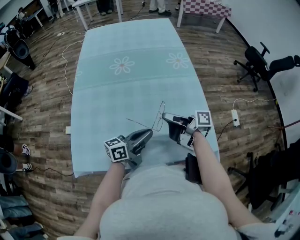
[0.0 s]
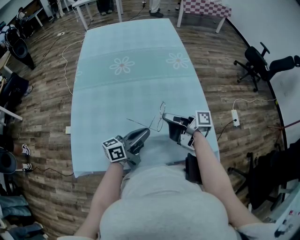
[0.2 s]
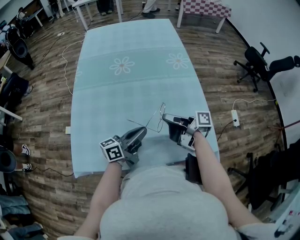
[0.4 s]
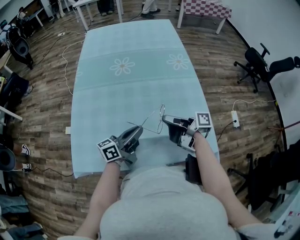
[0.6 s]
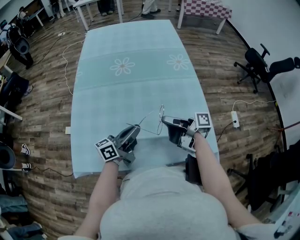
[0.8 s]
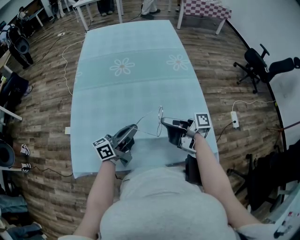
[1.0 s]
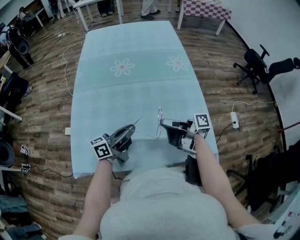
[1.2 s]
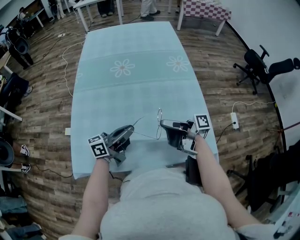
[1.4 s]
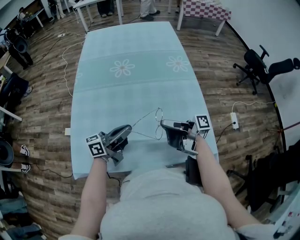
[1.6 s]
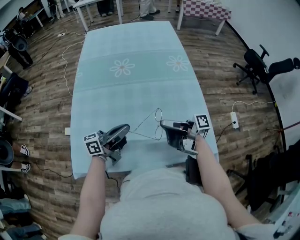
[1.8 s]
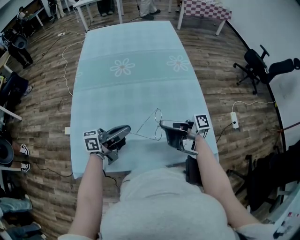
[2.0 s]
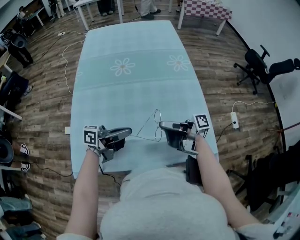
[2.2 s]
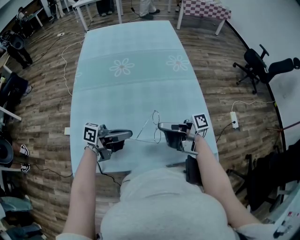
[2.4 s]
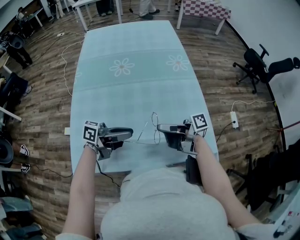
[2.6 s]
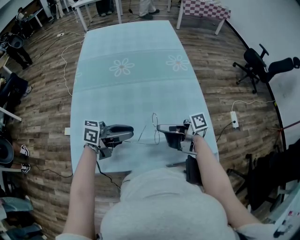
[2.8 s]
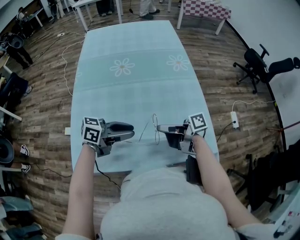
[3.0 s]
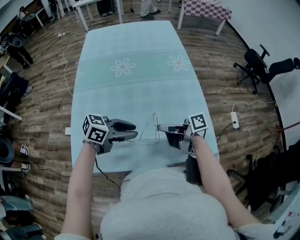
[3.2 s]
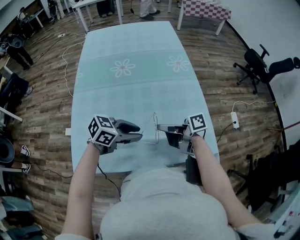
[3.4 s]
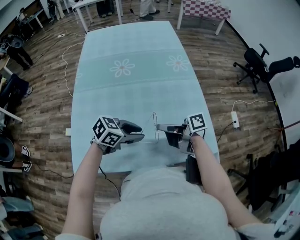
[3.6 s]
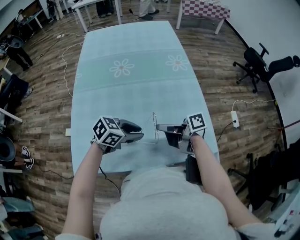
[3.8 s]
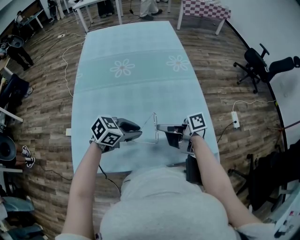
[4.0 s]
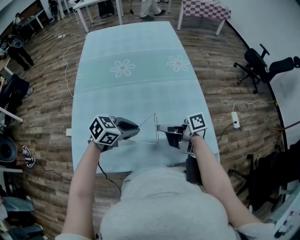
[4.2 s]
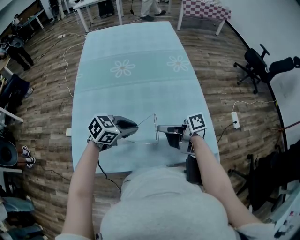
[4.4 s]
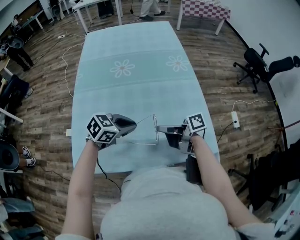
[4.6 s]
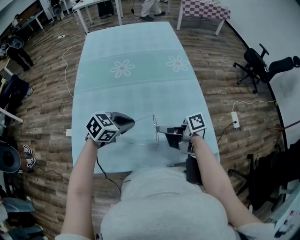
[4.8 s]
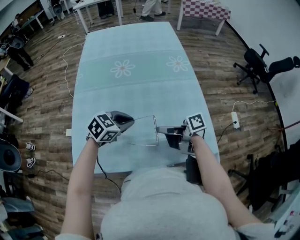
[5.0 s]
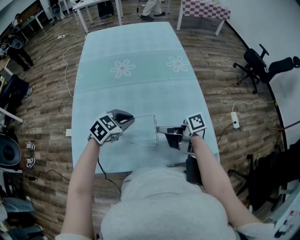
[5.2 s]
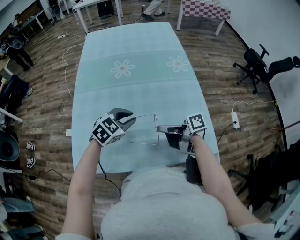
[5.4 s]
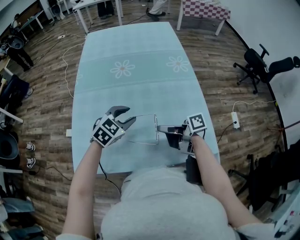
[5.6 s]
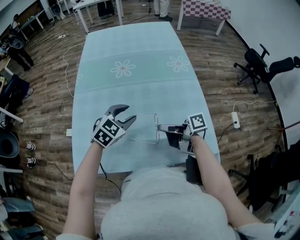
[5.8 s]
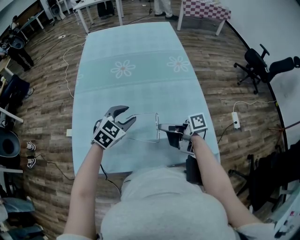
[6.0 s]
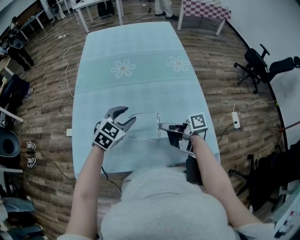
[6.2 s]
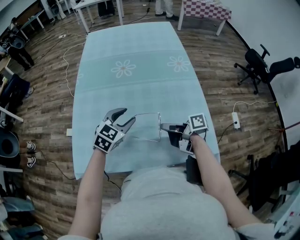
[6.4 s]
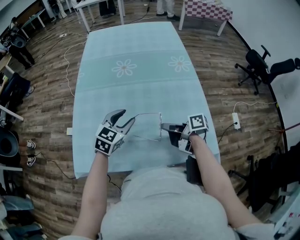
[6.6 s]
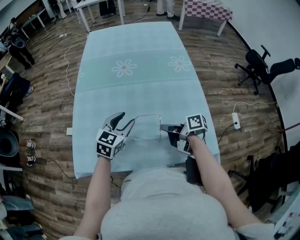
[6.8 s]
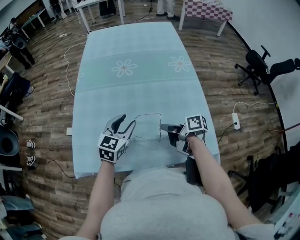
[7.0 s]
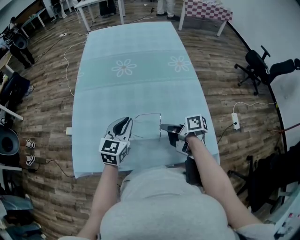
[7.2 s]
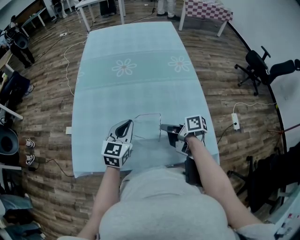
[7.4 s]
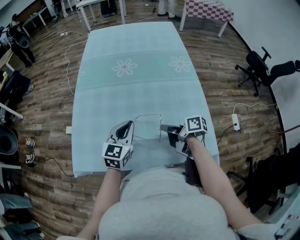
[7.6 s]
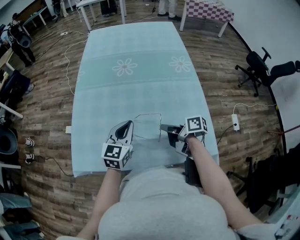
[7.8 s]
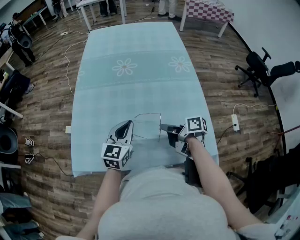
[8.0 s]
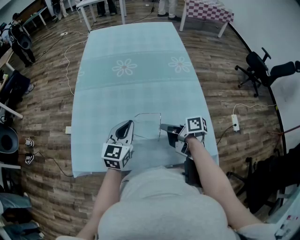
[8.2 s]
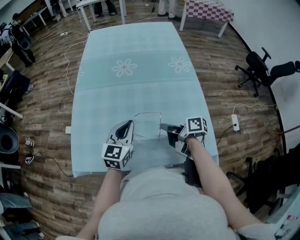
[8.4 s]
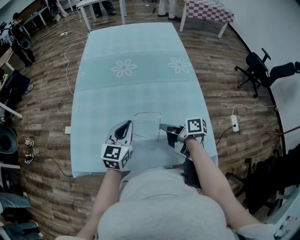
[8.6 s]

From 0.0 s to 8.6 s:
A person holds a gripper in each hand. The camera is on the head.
From 0.0 s to 1.4 s: The left gripper ends up about 10 cm from where it was.
From 1.4 s to 2.8 s: The left gripper swivels approximately 30 degrees, and opens up.
From 2.8 s to 4.4 s: The left gripper angles its fingers downward, by about 40 degrees, and closes its fingers.
From 4.4 s to 5.8 s: The left gripper moves some 5 cm, changes its angle by roughly 30 degrees, and opens.
From 5.8 s to 7.2 s: The left gripper changes its angle by some 40 degrees, and closes.

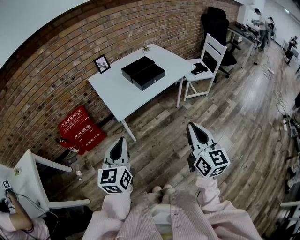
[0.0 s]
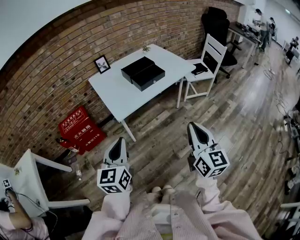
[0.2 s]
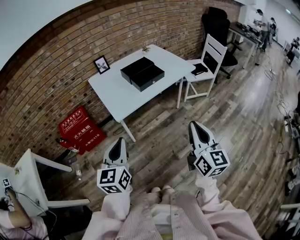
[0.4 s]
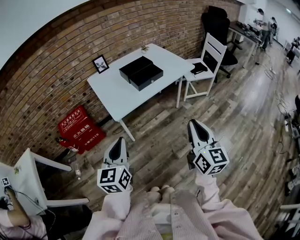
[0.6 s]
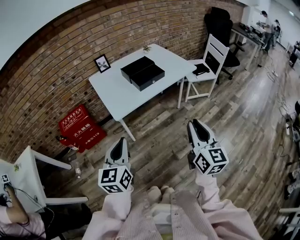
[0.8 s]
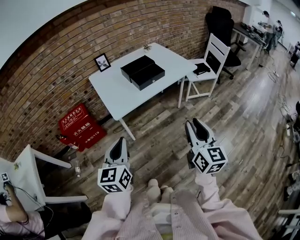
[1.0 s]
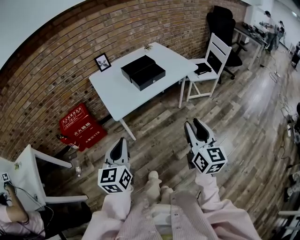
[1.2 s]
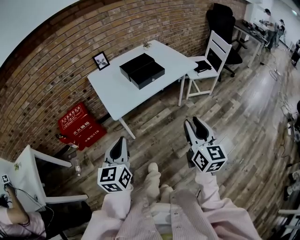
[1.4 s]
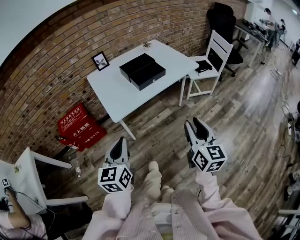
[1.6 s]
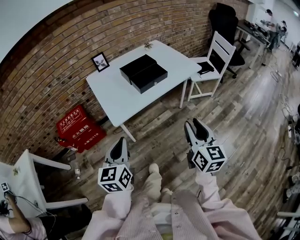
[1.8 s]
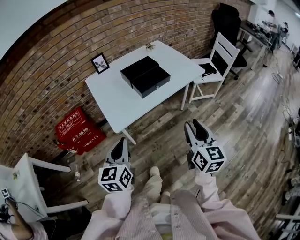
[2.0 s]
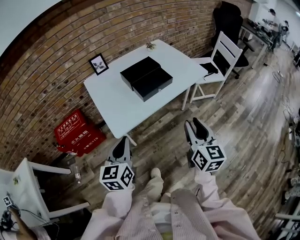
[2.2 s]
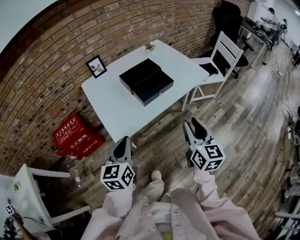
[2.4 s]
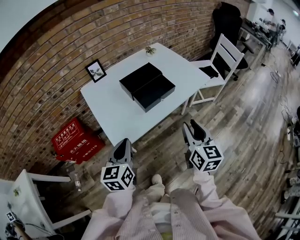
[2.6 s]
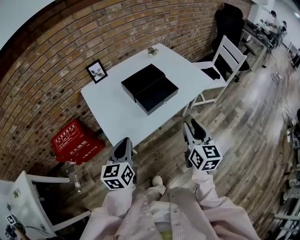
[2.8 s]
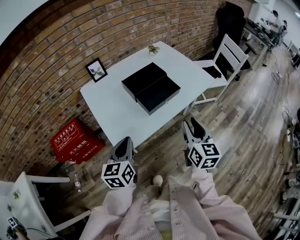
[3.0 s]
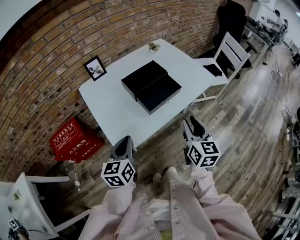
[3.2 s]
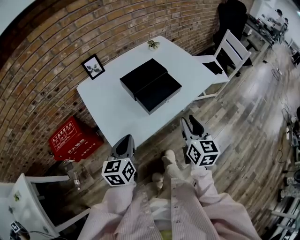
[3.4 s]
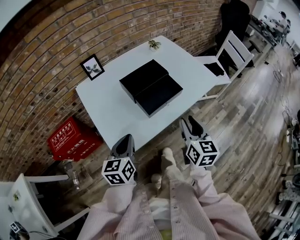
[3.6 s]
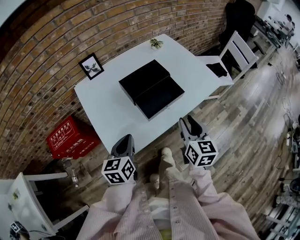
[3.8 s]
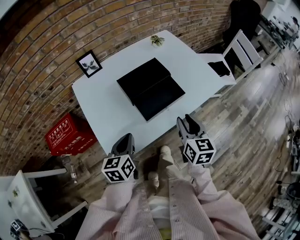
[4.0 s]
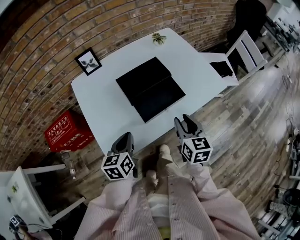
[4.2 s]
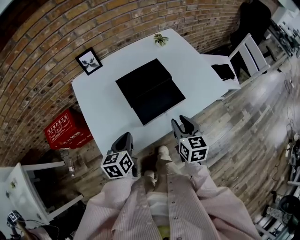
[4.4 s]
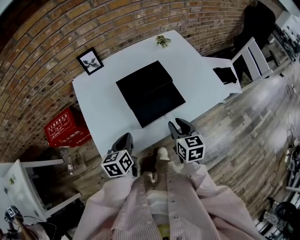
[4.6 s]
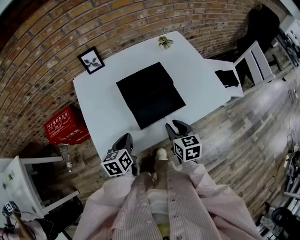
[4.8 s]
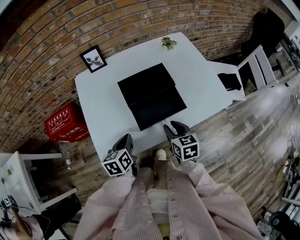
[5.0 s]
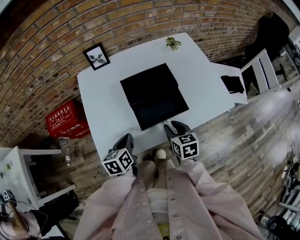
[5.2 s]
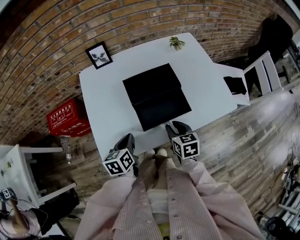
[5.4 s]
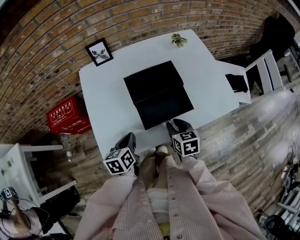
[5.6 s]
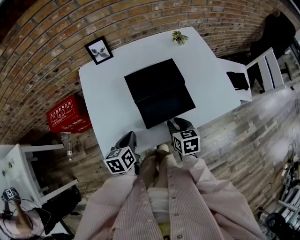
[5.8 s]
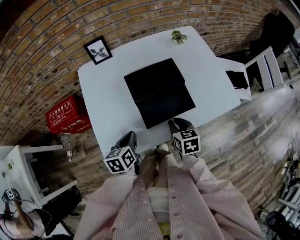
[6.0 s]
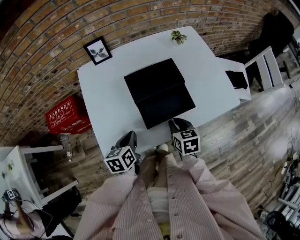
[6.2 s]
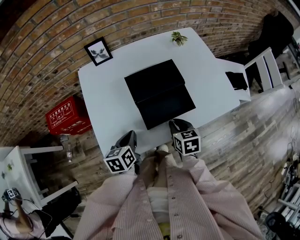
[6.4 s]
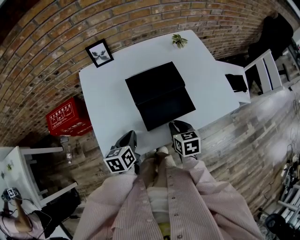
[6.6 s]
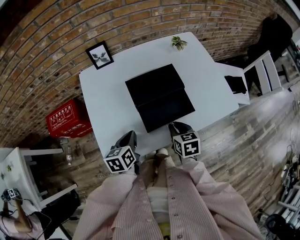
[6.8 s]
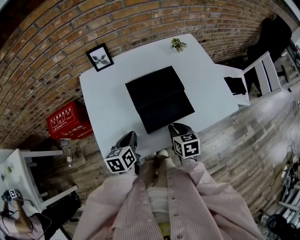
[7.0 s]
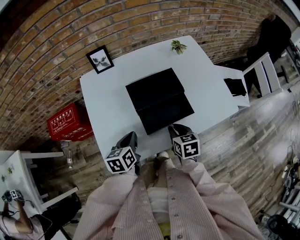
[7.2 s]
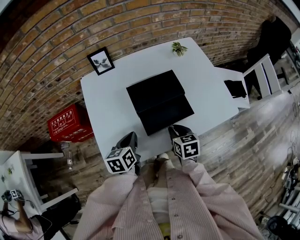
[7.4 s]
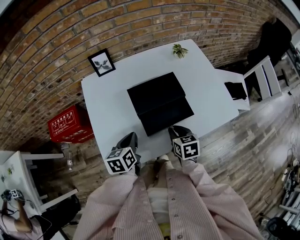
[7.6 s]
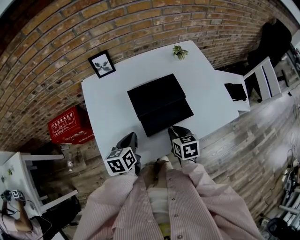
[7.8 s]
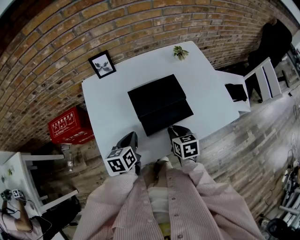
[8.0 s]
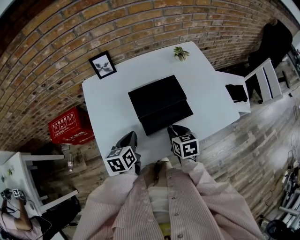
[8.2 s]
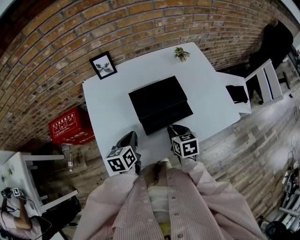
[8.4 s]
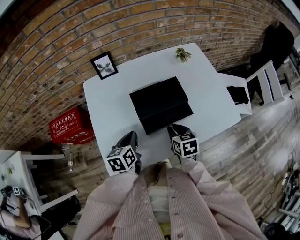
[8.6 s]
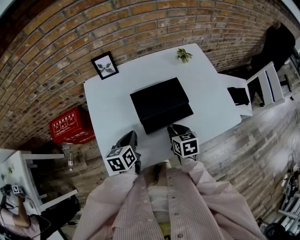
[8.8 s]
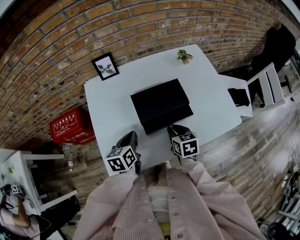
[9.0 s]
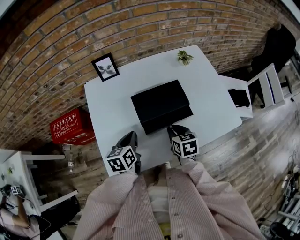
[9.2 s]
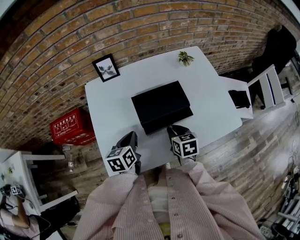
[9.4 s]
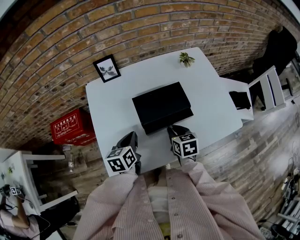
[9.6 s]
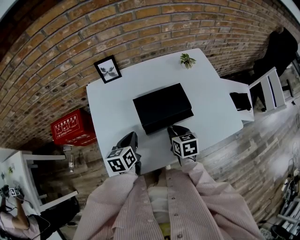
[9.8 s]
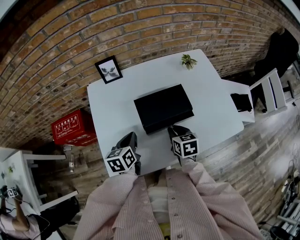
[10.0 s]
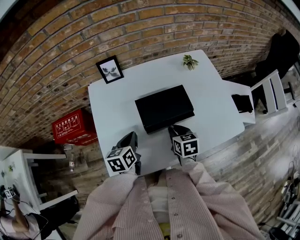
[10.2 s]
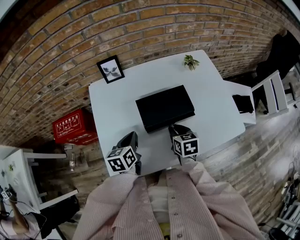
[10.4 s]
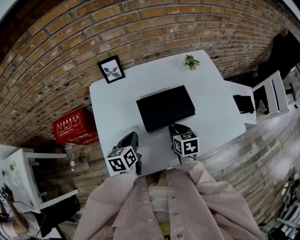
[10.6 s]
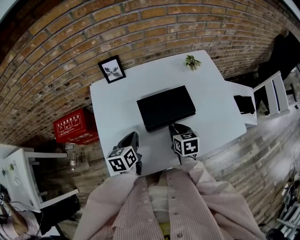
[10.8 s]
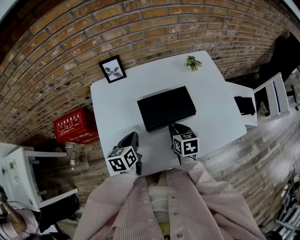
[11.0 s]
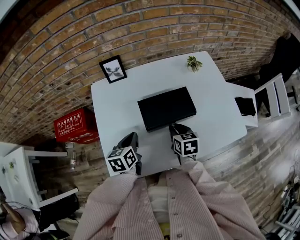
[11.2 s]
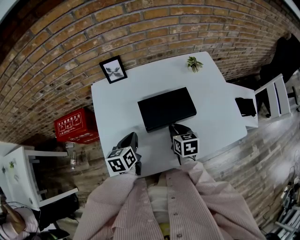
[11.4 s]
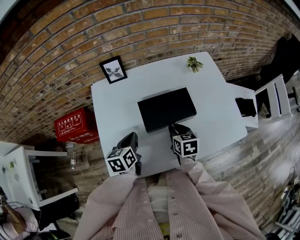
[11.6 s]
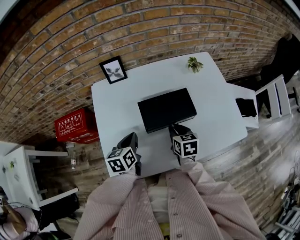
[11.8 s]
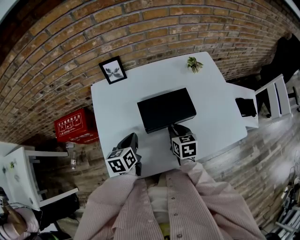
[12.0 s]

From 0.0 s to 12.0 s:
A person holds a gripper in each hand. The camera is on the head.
From 0.0 s to 1.6 s: The left gripper moves about 5 cm, while the right gripper shifts some 5 cm forward, and opens.
From 1.6 s to 3.0 s: The grippers both shift forward by approximately 25 cm.
From 3.0 s to 4.4 s: The two grippers go about 15 cm forward and downward. The right gripper rotates some 20 degrees.
From 4.4 s to 6.0 s: The right gripper is displaced downward by roughly 10 cm, and swivels roughly 20 degrees.
From 6.0 s to 7.6 s: The left gripper shifts by roughly 5 cm.
From 7.6 s to 9.0 s: The grippers stay close to where they were, moving slightly.
From 9.0 s to 12.0 s: There are only small adjustments of the grippers.

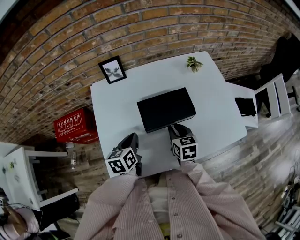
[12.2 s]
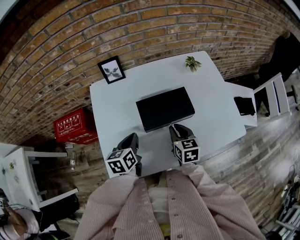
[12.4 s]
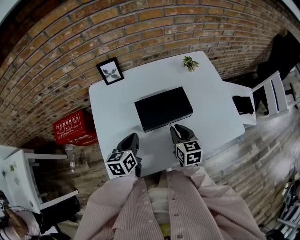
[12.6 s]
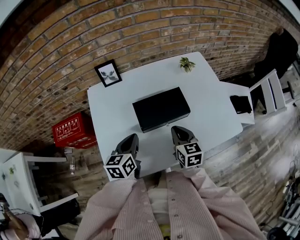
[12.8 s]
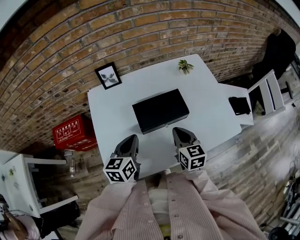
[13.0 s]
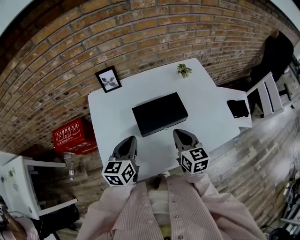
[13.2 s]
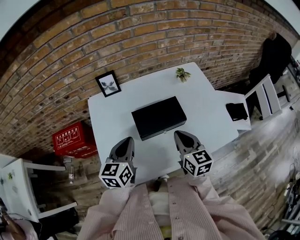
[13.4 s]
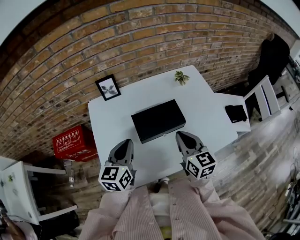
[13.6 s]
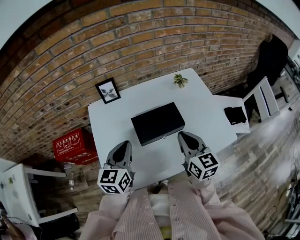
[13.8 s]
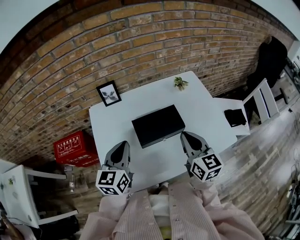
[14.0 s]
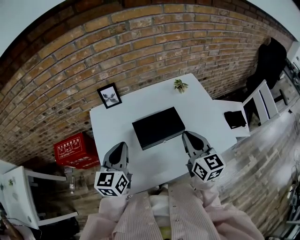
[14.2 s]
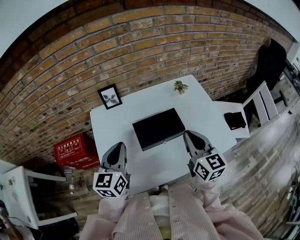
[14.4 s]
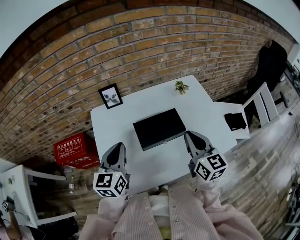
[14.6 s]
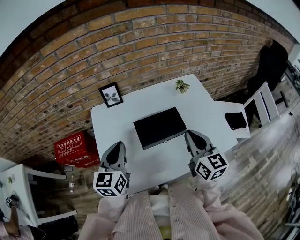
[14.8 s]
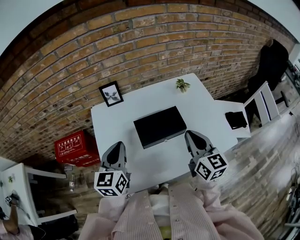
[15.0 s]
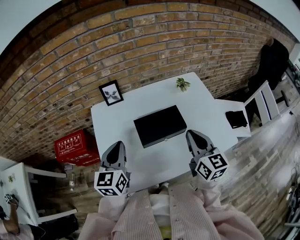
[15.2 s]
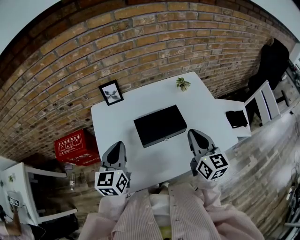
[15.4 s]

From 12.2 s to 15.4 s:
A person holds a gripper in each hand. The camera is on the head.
From 12.2 s to 13.8 s: The two grippers go approximately 15 cm upward. The right gripper rotates roughly 30 degrees, while the left gripper swivels some 30 degrees.
From 13.8 s to 15.4 s: The grippers make only small movements.
